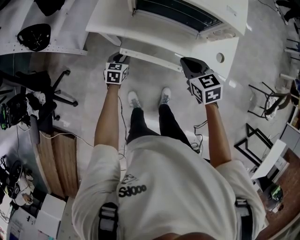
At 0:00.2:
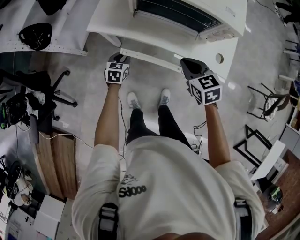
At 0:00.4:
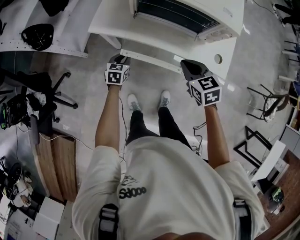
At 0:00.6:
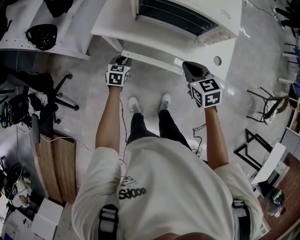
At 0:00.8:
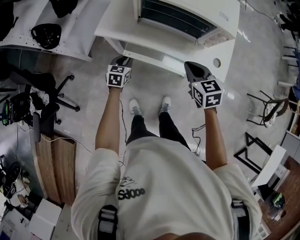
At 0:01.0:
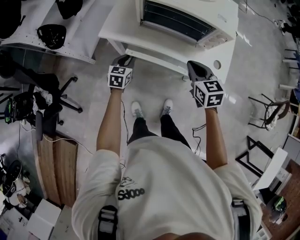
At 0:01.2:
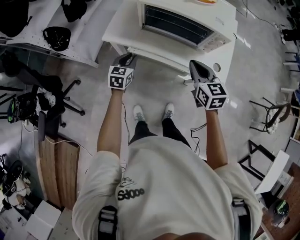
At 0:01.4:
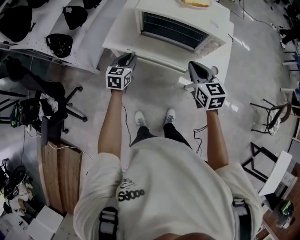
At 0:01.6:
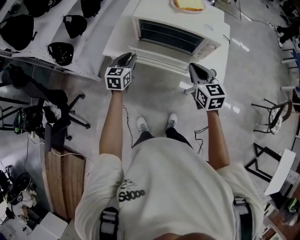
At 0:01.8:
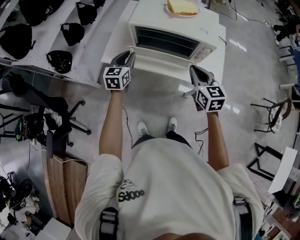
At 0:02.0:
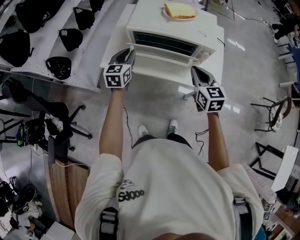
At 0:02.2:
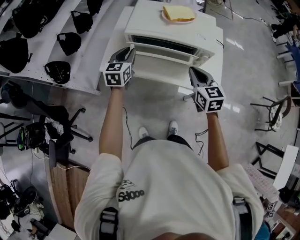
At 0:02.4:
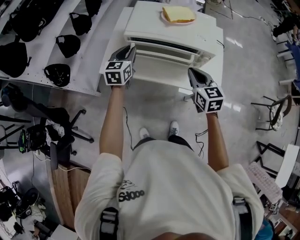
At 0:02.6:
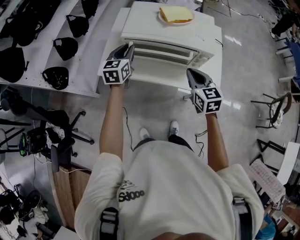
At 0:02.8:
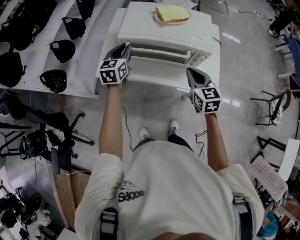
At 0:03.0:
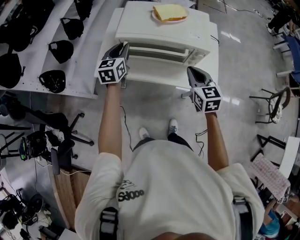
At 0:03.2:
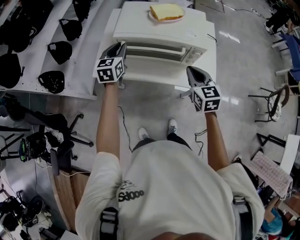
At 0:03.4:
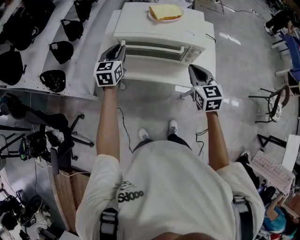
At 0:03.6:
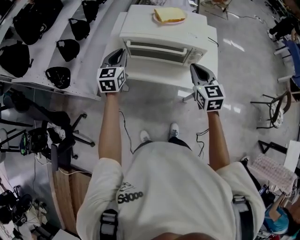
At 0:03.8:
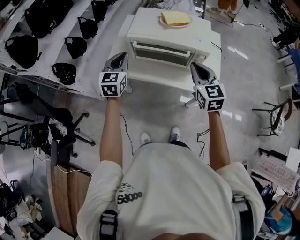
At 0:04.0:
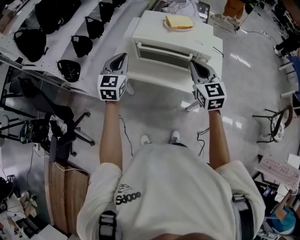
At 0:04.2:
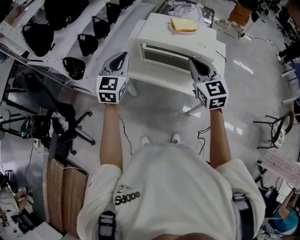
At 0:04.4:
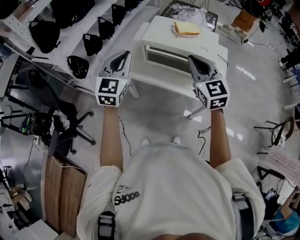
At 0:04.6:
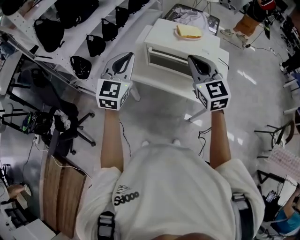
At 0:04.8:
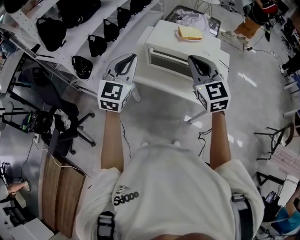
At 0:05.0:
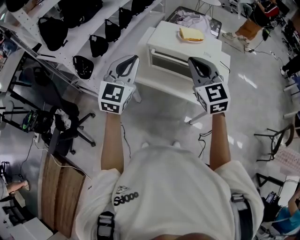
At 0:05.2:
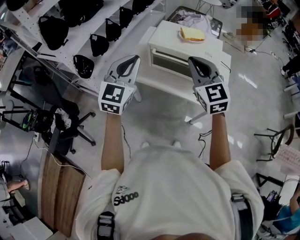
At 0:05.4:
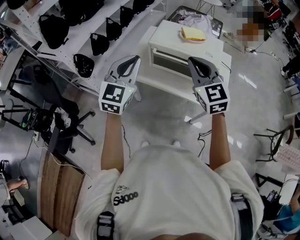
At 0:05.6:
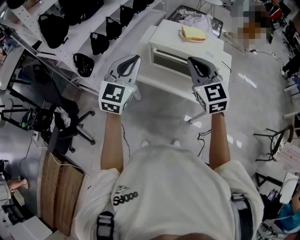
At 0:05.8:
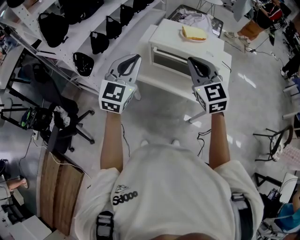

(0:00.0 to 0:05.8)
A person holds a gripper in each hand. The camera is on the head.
0:00.0 - 0:01.4: The right gripper travels upward by about 10 cm, and turns by some 20 degrees; the left gripper heads upward, covering about 20 cm.
0:01.4 - 0:02.8: The right gripper moves forward, approximately 5 cm. Meanwhile the left gripper shifts about 20 cm forward and upward.
0:02.8 - 0:04.4: The left gripper shifts some 25 cm backward and upward, and turns by some 30 degrees. The right gripper moves upward, some 15 cm, and changes its angle by roughly 30 degrees.
0:04.4 - 0:05.8: The grippers move only a little.

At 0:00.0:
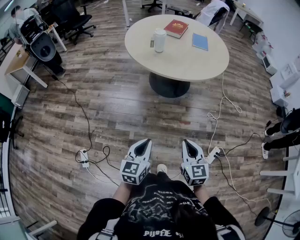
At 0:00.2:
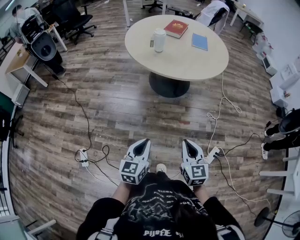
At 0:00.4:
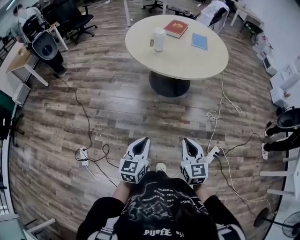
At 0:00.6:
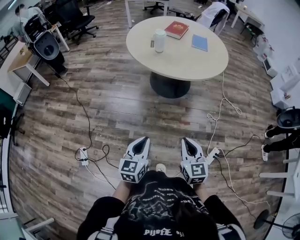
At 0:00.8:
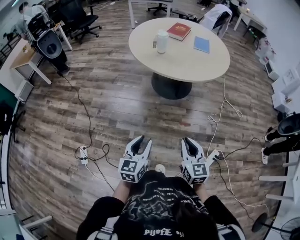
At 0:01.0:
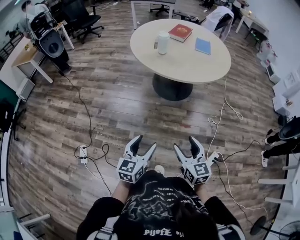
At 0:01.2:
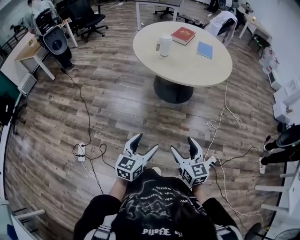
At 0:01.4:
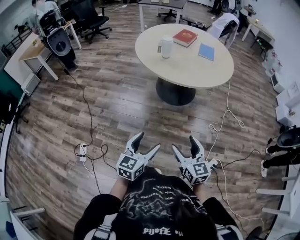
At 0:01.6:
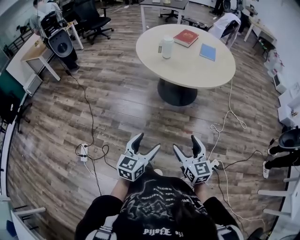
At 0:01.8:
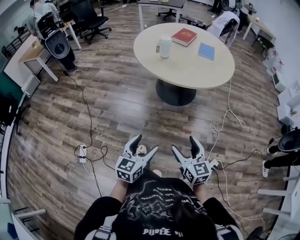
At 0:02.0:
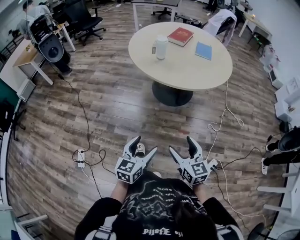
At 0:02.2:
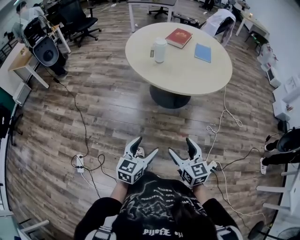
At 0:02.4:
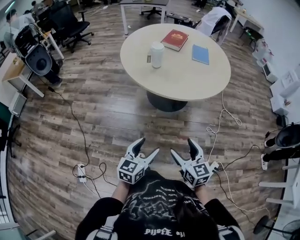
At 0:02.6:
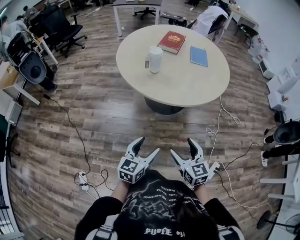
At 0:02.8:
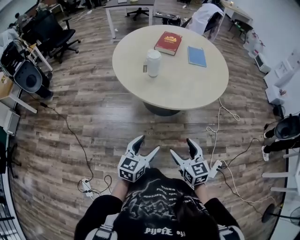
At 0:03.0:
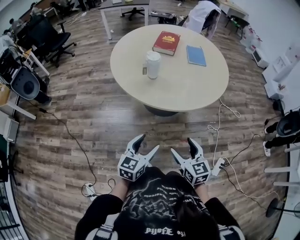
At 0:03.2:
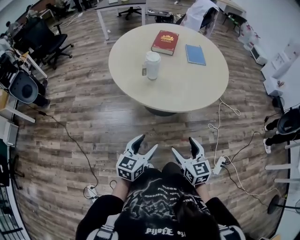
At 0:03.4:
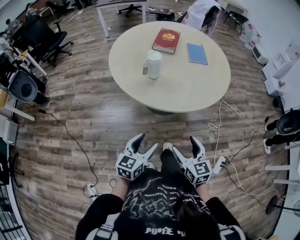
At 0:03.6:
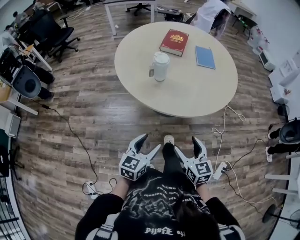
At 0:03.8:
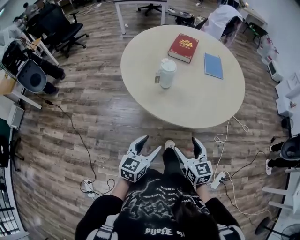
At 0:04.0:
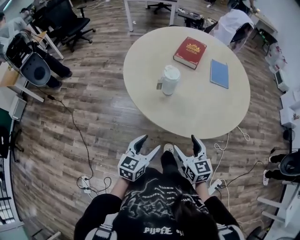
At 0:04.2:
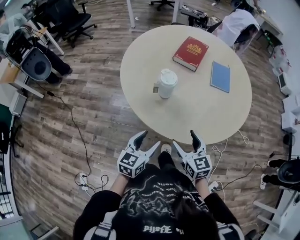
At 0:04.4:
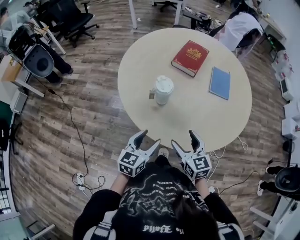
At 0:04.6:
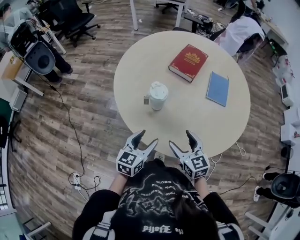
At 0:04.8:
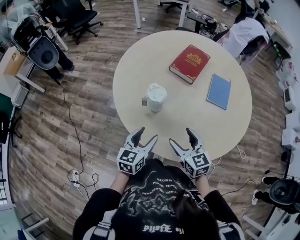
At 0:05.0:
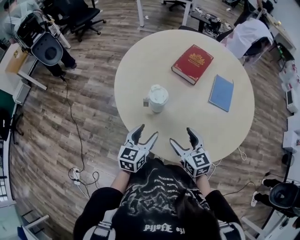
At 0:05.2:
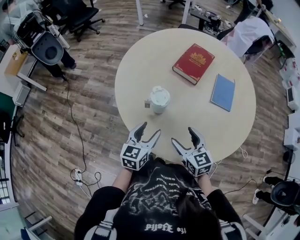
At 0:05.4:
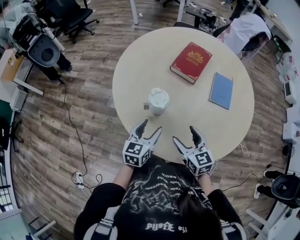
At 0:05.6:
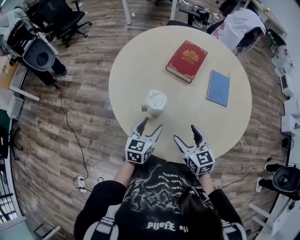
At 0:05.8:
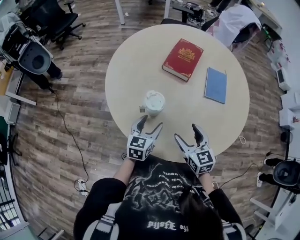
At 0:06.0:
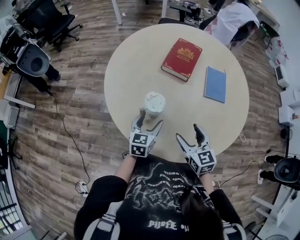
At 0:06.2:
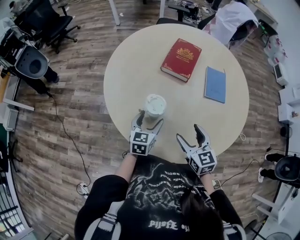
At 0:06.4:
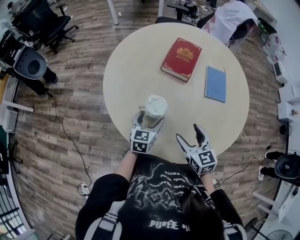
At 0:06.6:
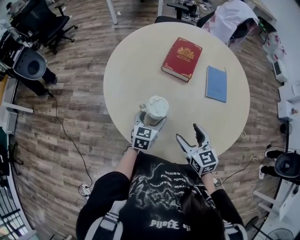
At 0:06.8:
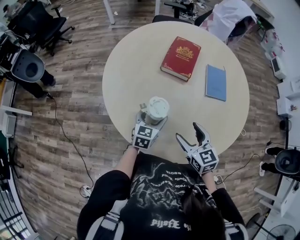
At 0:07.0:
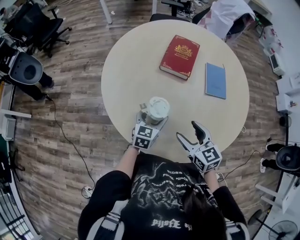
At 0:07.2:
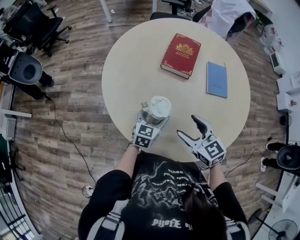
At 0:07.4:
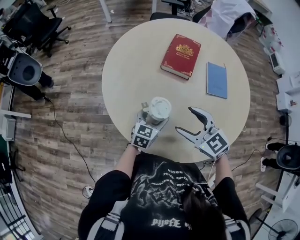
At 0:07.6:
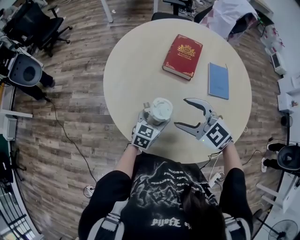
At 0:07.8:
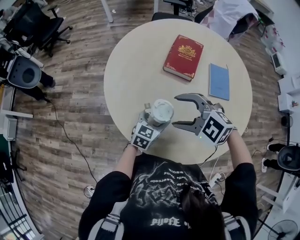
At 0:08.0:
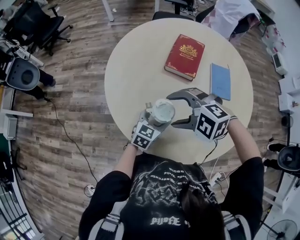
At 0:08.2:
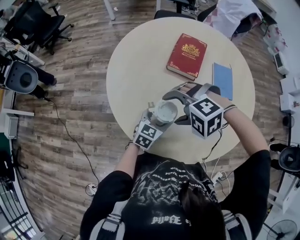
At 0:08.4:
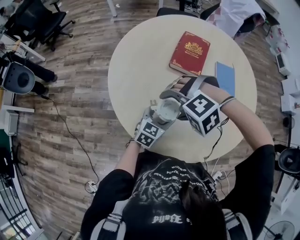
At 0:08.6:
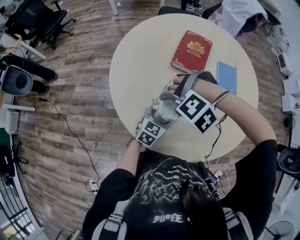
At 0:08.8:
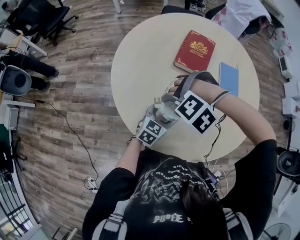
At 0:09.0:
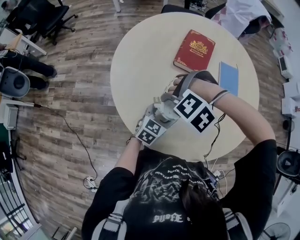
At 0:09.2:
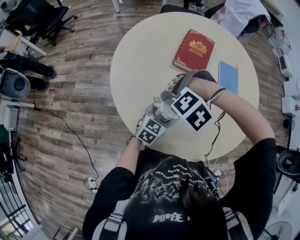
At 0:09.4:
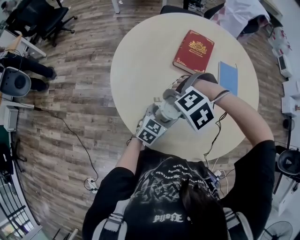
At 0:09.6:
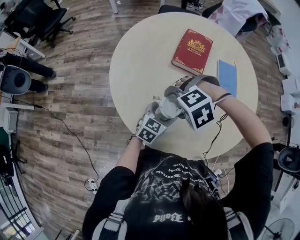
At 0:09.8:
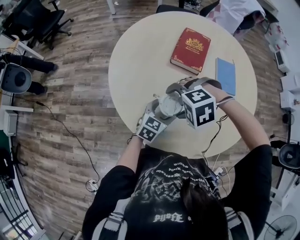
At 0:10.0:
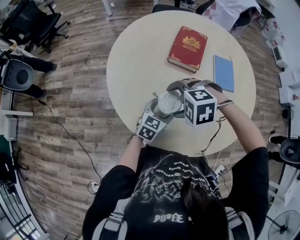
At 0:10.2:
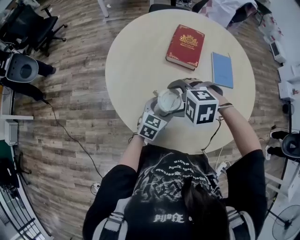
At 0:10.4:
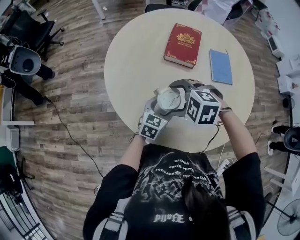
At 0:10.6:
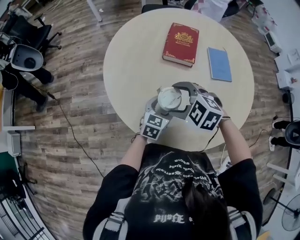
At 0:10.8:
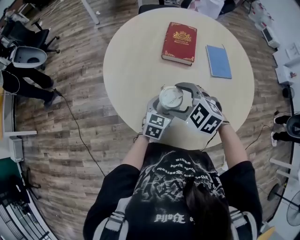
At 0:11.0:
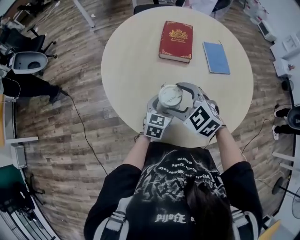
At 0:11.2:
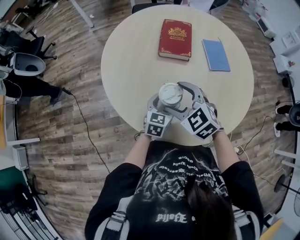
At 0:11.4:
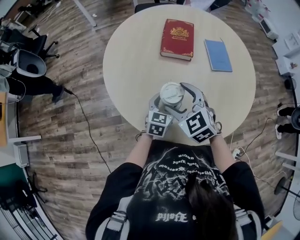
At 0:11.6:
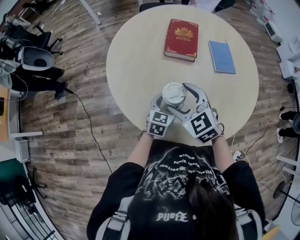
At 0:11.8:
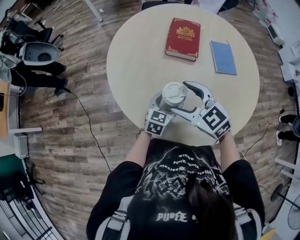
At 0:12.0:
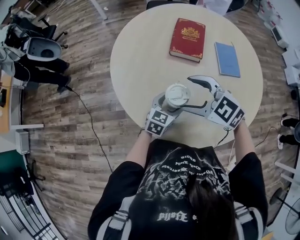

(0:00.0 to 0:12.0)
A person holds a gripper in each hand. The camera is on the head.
0:00.0 - 0:01.6: The left gripper travels to the right by roughly 5 cm, and opens up, while the right gripper opens.
0:01.6 - 0:03.0: The left gripper moves forward, approximately 30 cm. The right gripper goes roughly 25 cm forward and to the left.
0:03.0 - 0:04.4: The two grippers go roughly 30 cm forward.
0:04.4 - 0:06.0: The right gripper goes roughly 10 cm forward. The left gripper is displaced forward by roughly 20 cm.
0:06.0 - 0:07.6: The left gripper ends up roughly 5 cm from where it was. Meanwhile the right gripper goes about 15 cm to the left, forward and upward, and turns by about 40 degrees.
0:07.6 - 0:09.0: The right gripper moves roughly 10 cm, and points its fingers approximately 50 degrees further downward.
0:09.0 - 0:10.4: The right gripper twists approximately 50 degrees clockwise, seen from behind.
0:10.4 - 0:12.0: The right gripper swivels about 30 degrees.

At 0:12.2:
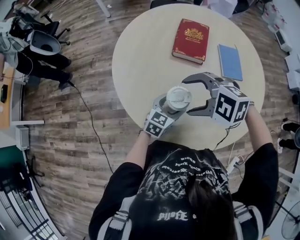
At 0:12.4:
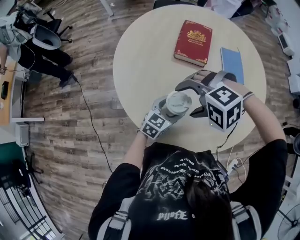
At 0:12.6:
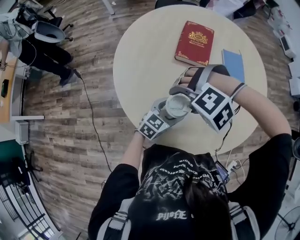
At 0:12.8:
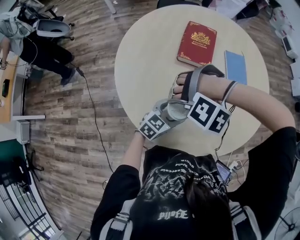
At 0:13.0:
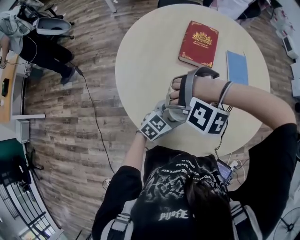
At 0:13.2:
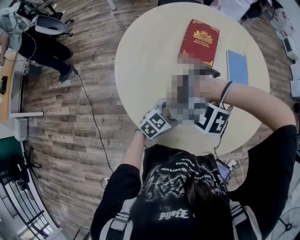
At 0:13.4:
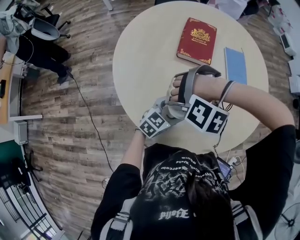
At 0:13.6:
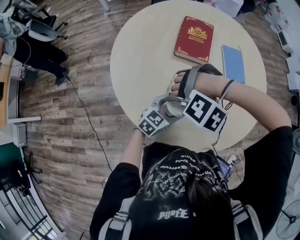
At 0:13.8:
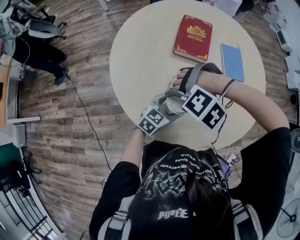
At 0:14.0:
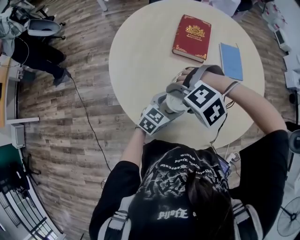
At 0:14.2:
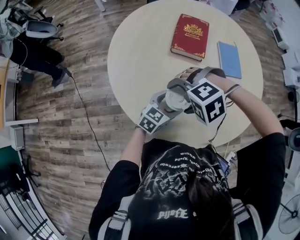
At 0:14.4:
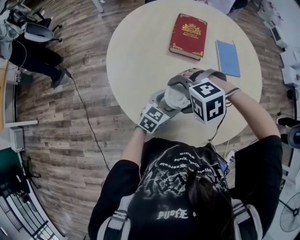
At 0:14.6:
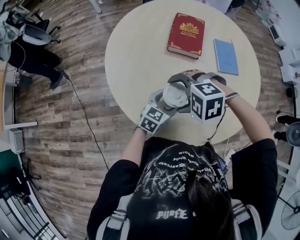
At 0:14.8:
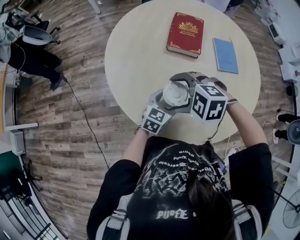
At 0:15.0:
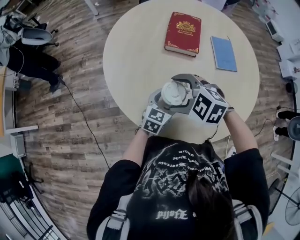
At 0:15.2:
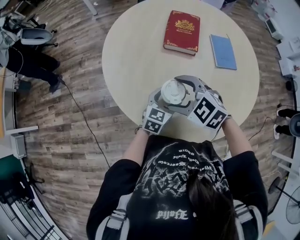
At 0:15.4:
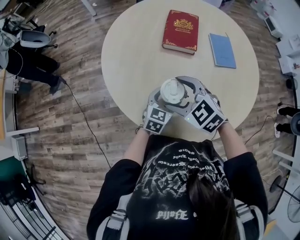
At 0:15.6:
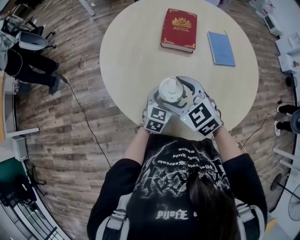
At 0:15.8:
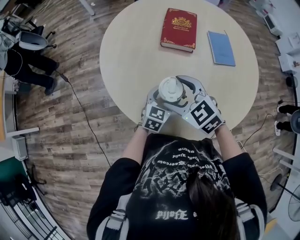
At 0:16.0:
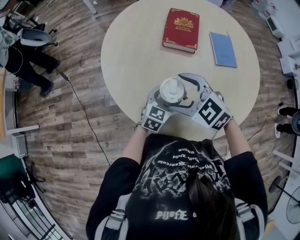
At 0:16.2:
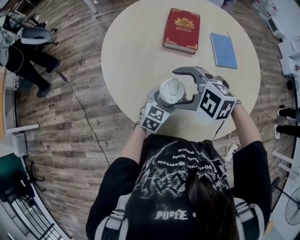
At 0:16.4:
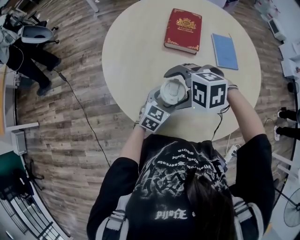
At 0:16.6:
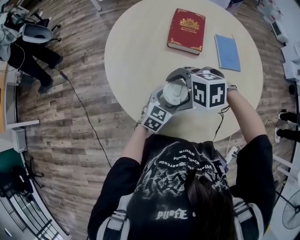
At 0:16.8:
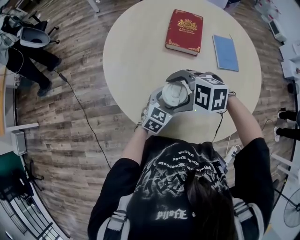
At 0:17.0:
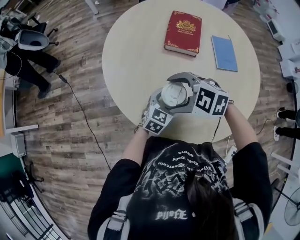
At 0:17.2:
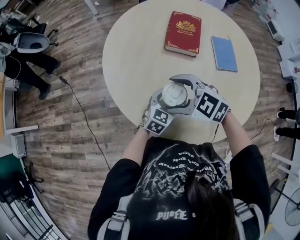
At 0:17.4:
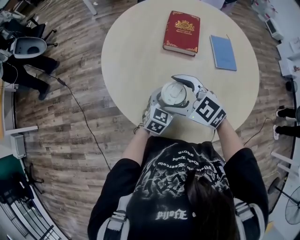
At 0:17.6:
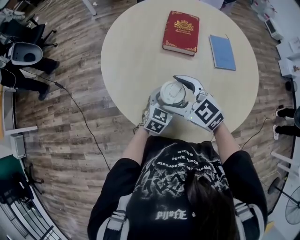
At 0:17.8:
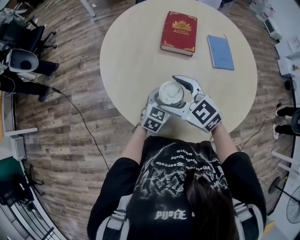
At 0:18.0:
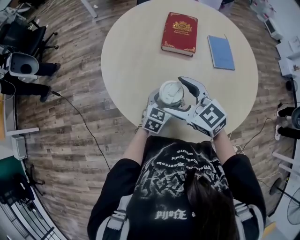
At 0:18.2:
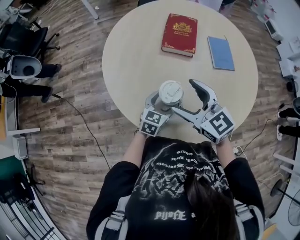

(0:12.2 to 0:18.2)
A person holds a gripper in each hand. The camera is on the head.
0:12.2 - 0:13.8: The right gripper shifts approximately 5 cm downward, and points its fingers roughly 30 degrees further downward.
0:13.8 - 0:15.2: The right gripper rotates around the line of its fingers by about 70 degrees, clockwise from behind.
0:15.2 - 0:16.6: The right gripper swivels approximately 40 degrees.
0:16.6 - 0:18.2: The right gripper is displaced upward by approximately 5 cm, and angles its fingers upward, by about 40 degrees.
